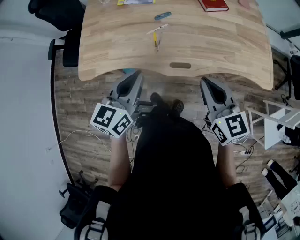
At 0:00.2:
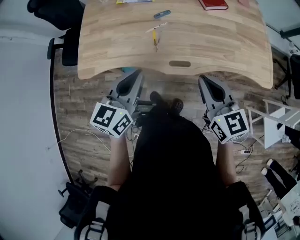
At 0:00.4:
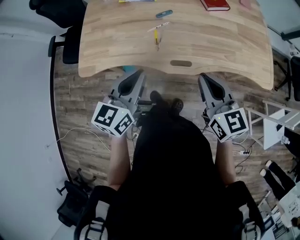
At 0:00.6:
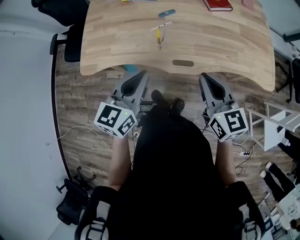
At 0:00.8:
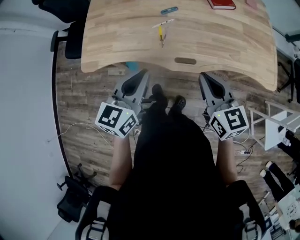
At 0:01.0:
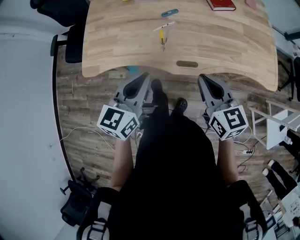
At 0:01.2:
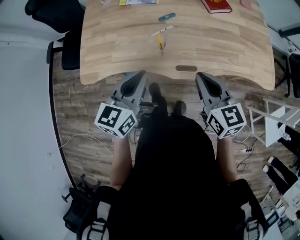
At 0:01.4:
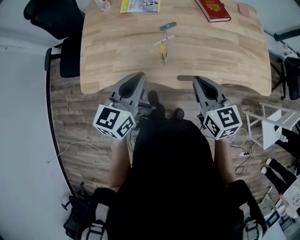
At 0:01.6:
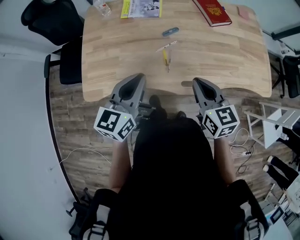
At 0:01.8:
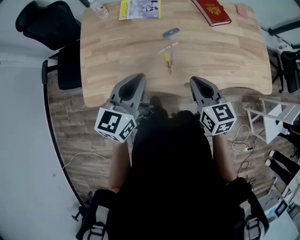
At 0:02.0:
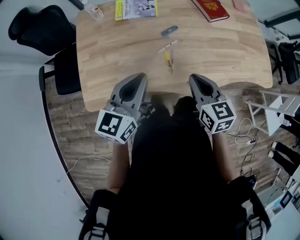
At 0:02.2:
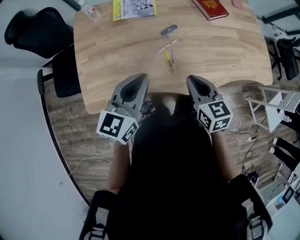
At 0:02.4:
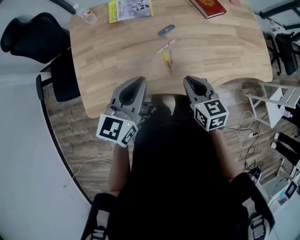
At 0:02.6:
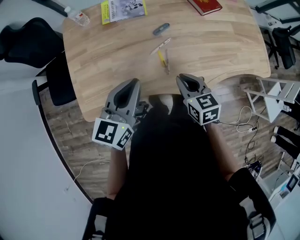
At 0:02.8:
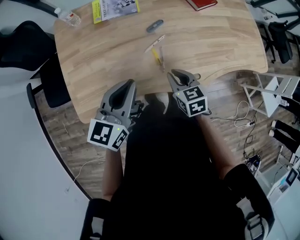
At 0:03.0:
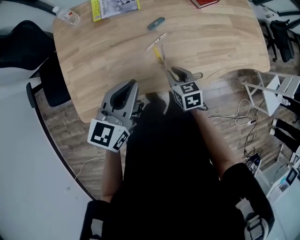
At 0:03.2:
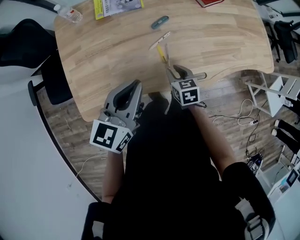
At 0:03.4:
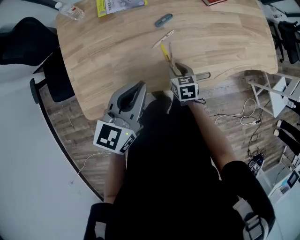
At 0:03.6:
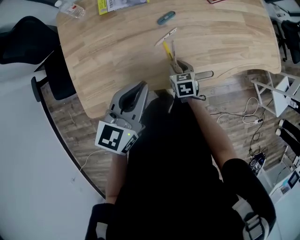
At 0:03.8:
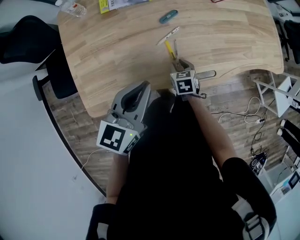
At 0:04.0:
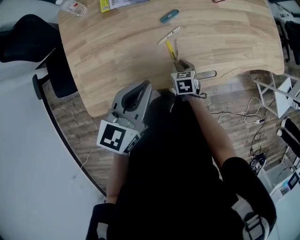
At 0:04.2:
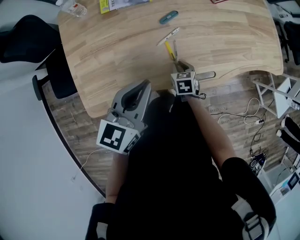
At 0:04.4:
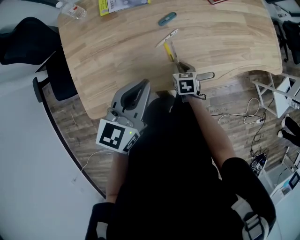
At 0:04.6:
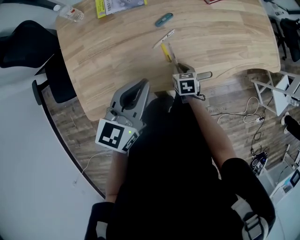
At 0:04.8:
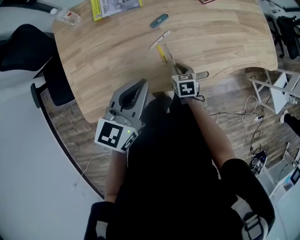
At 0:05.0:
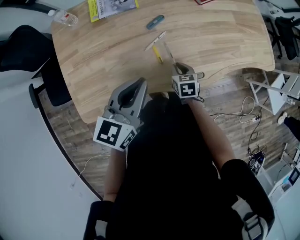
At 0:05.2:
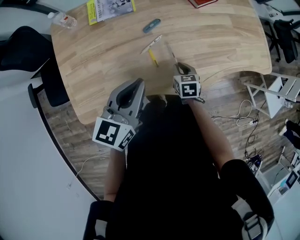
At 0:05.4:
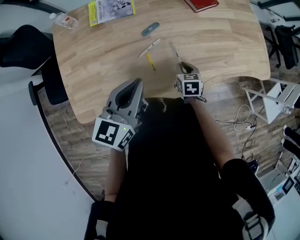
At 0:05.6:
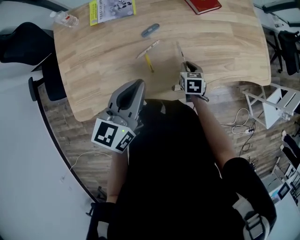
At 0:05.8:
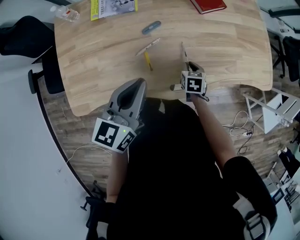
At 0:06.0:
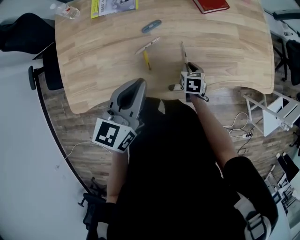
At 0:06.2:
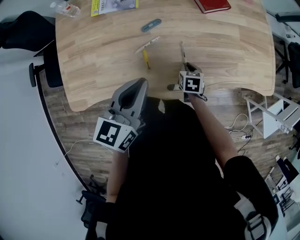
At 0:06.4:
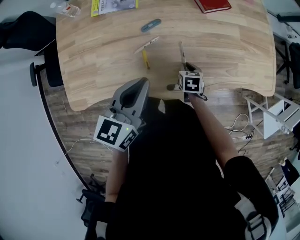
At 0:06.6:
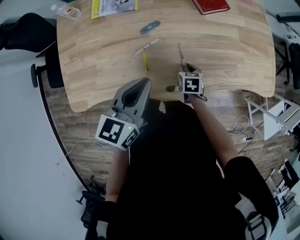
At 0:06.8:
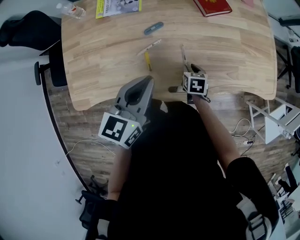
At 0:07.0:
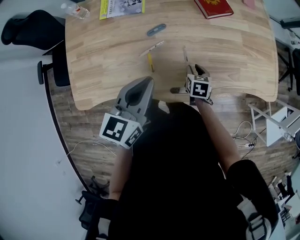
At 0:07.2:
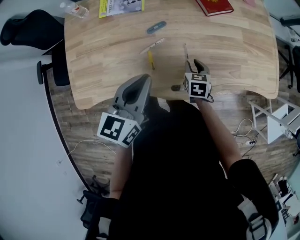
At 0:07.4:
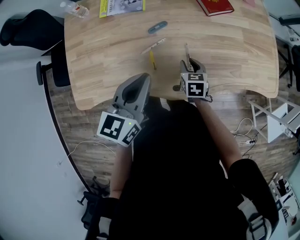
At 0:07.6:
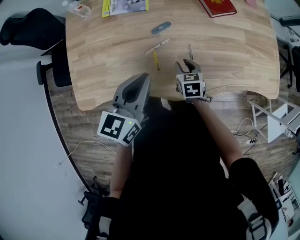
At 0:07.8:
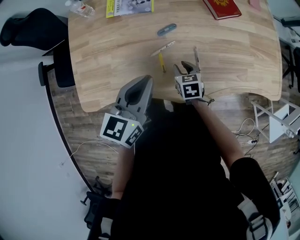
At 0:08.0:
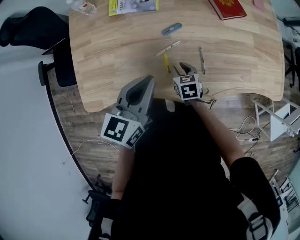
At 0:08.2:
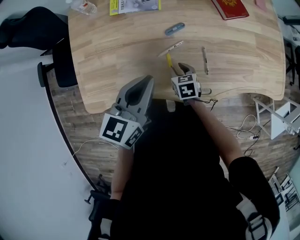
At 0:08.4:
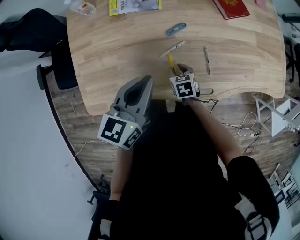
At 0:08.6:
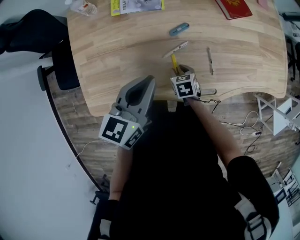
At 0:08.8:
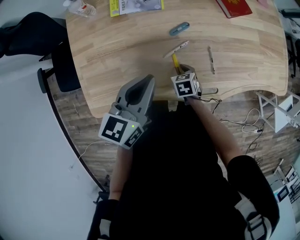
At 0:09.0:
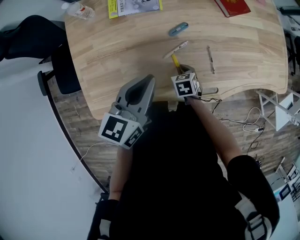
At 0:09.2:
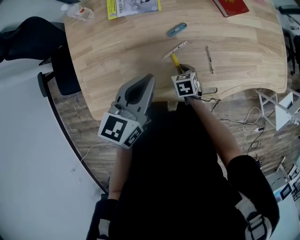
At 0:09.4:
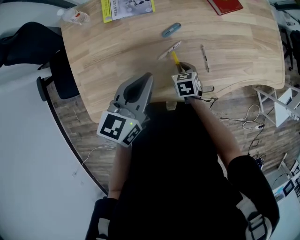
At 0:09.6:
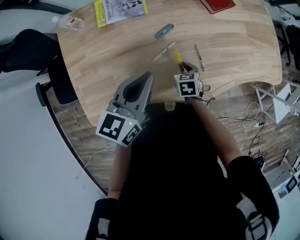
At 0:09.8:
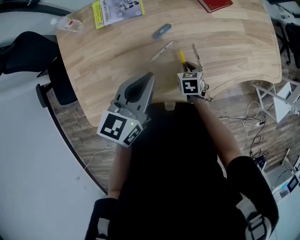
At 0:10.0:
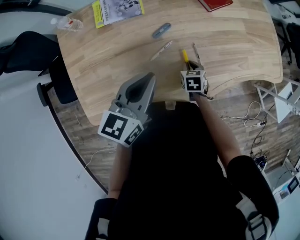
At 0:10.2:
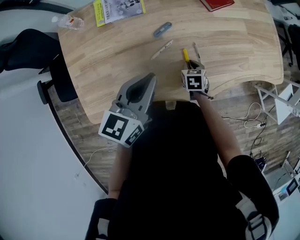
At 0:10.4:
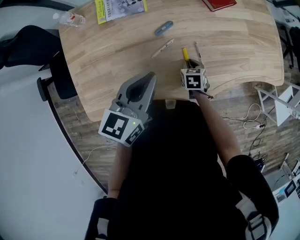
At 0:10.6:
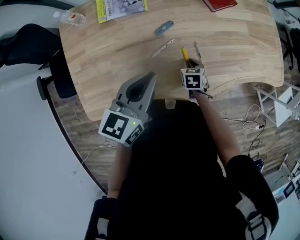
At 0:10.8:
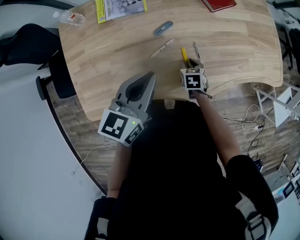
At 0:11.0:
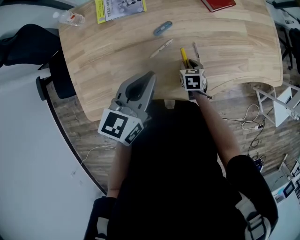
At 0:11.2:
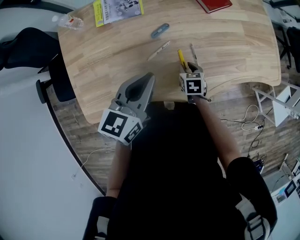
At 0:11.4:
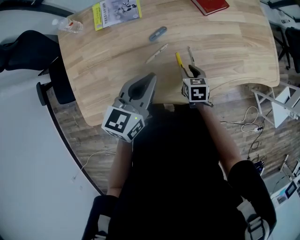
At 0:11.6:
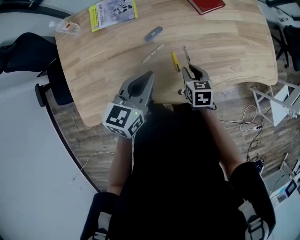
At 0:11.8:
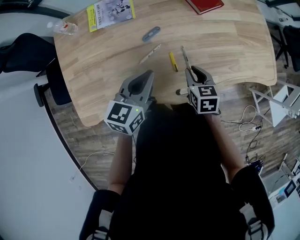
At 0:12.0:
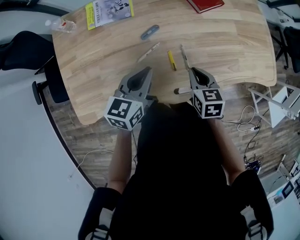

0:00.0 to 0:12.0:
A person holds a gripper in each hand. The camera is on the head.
0:00.0 to 0:01.6: The right gripper heads to the left and forward, covering roughly 15 cm, while the left gripper shifts some 15 cm forward and to the left.
0:01.6 to 0:03.0: The left gripper moves forward and downward, some 10 cm. Meanwhile the right gripper shifts some 20 cm downward and to the left, and swivels approximately 20 degrees.
0:03.0 to 0:04.4: The right gripper goes roughly 10 cm downward.
0:04.4 to 0:06.0: The two grippers go about 15 cm to the right and forward.
0:06.0 to 0:07.6: The right gripper goes about 10 cm to the left and upward.
0:07.6 to 0:09.0: The right gripper goes about 15 cm to the left and downward; the left gripper moves to the left, about 10 cm.
0:09.0 to 0:10.4: The left gripper is displaced to the right by about 5 cm. The right gripper travels to the right by roughly 10 cm.
0:10.4 to 0:12.0: The left gripper heads downward, covering approximately 5 cm, while the right gripper moves upward, some 15 cm.

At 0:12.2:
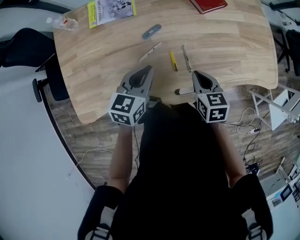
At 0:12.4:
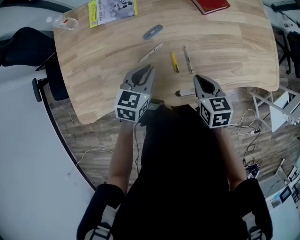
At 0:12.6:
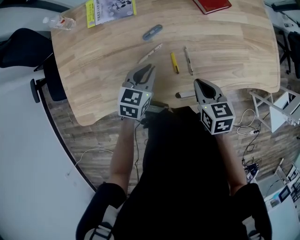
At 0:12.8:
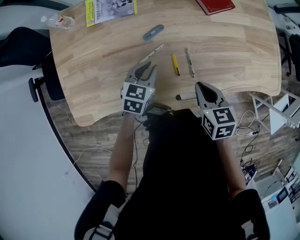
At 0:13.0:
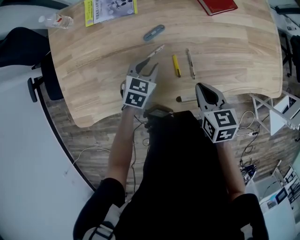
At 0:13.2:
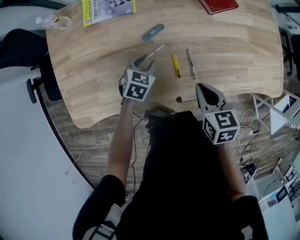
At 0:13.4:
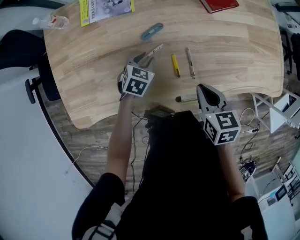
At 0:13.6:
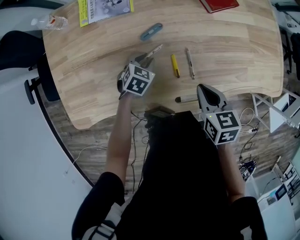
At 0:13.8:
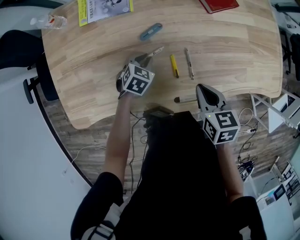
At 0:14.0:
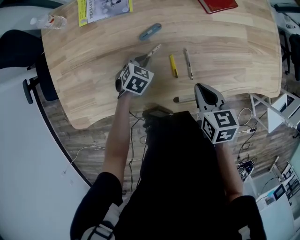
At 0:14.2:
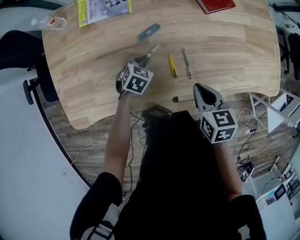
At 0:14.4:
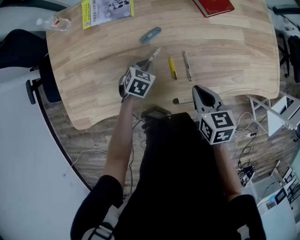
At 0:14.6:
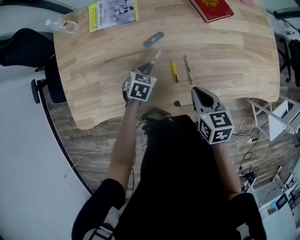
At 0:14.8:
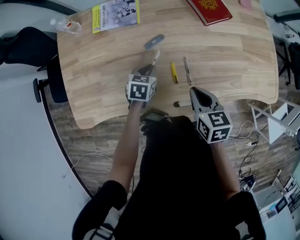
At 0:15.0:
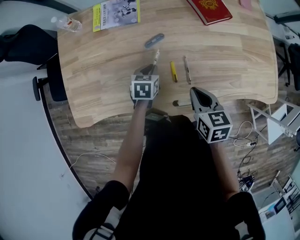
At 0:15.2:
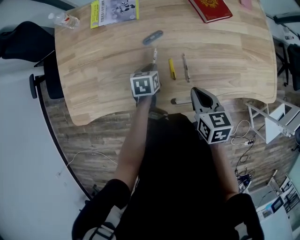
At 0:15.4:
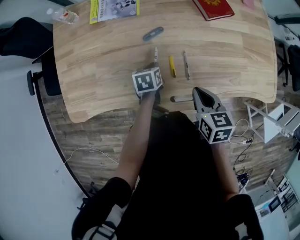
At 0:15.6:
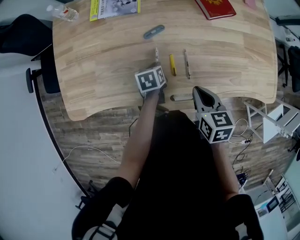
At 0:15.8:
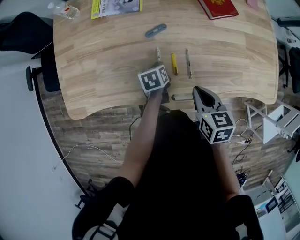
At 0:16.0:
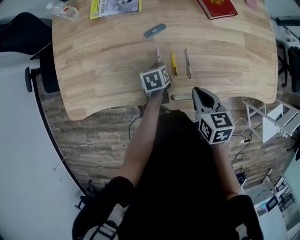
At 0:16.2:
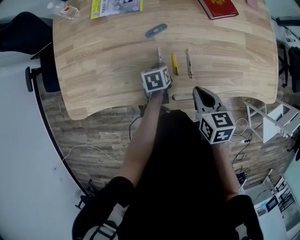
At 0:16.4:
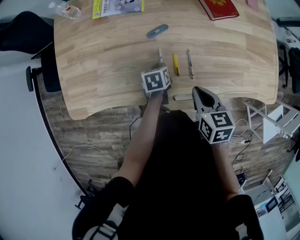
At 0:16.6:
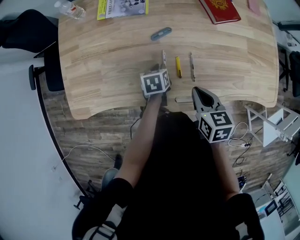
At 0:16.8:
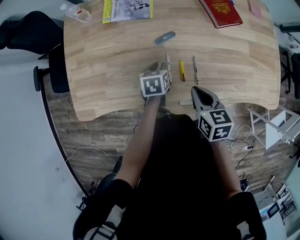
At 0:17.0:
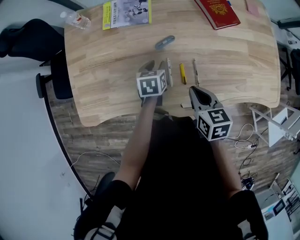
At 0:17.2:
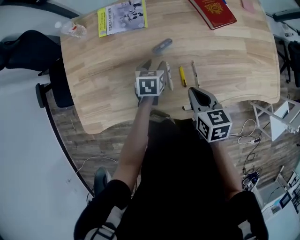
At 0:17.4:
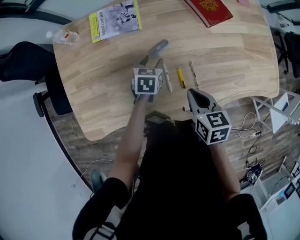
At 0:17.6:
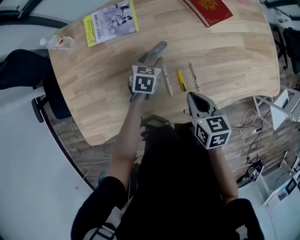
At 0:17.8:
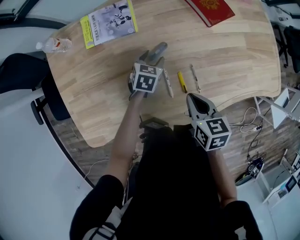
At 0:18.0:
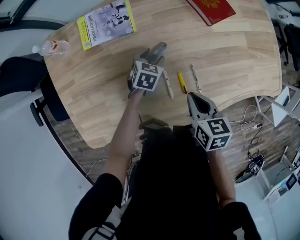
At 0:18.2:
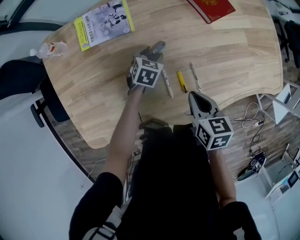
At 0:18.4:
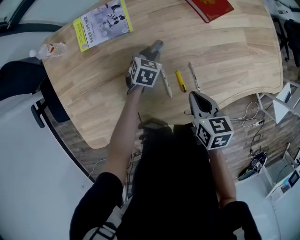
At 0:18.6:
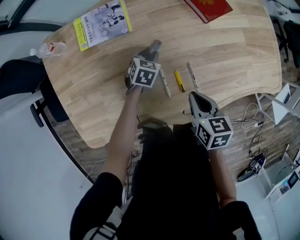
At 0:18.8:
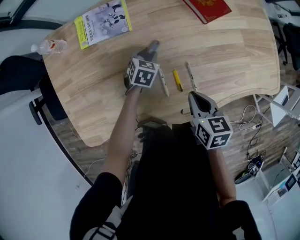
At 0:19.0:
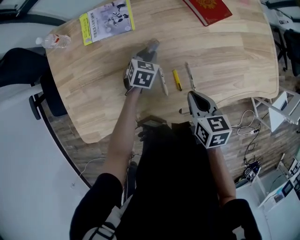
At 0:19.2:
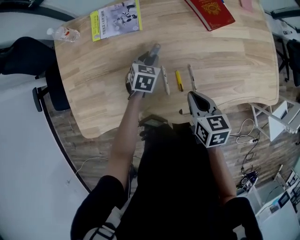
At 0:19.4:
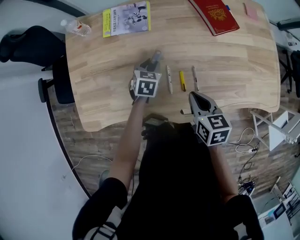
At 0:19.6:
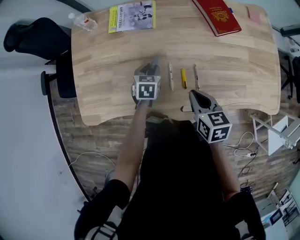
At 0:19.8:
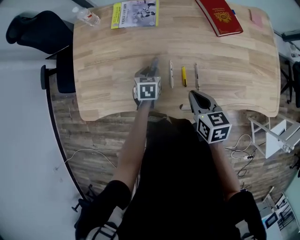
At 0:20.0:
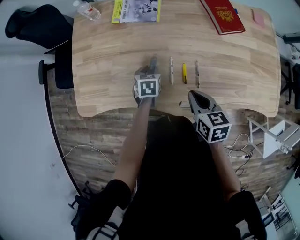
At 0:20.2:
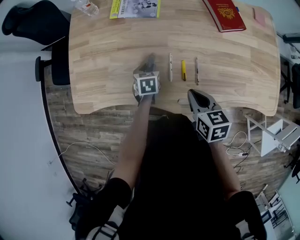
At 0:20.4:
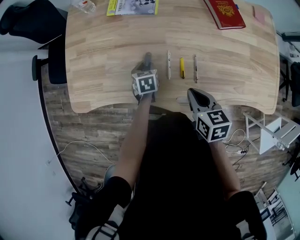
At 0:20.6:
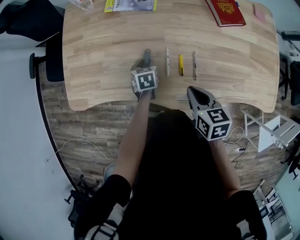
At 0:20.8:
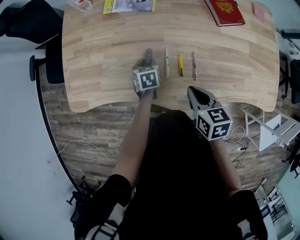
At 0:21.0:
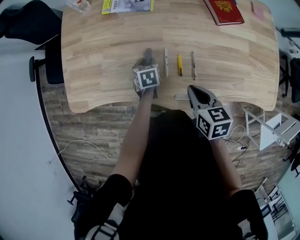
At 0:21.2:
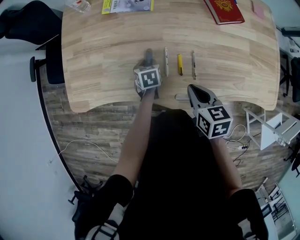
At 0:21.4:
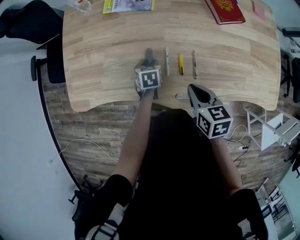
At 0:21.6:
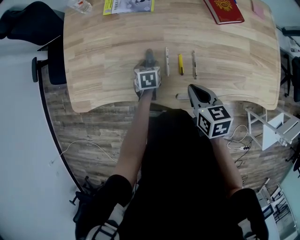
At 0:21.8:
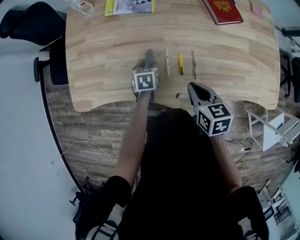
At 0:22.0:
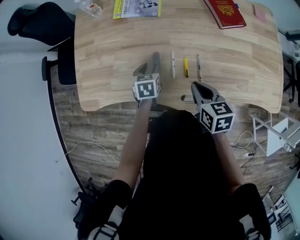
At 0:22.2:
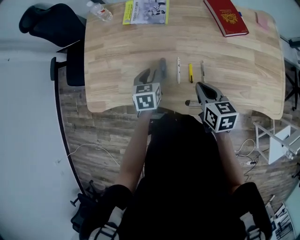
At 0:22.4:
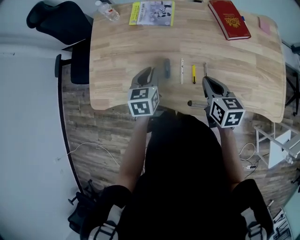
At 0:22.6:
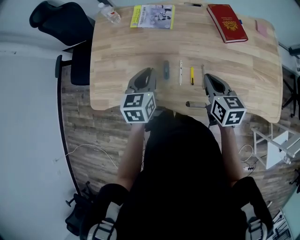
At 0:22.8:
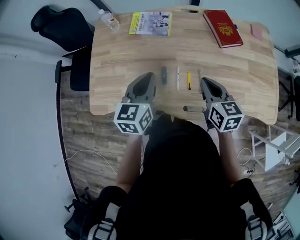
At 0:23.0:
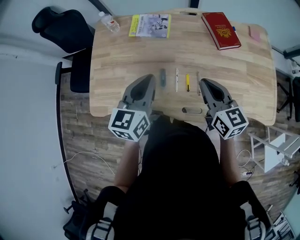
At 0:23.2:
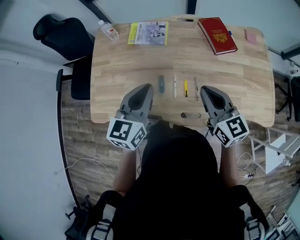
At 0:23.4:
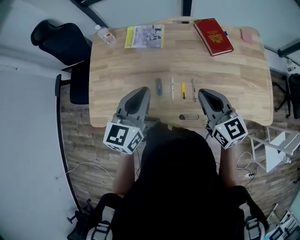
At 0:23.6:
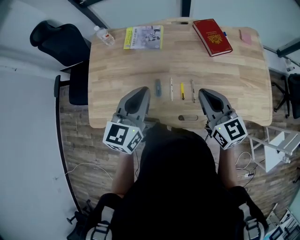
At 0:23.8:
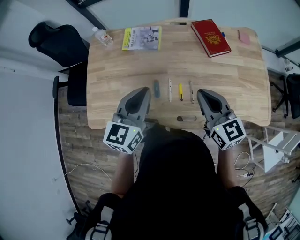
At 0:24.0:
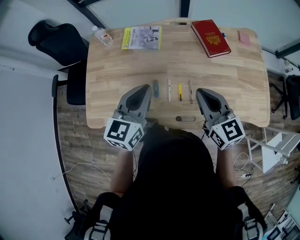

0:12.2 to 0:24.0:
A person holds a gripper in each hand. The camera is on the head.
0:12.2 to 0:13.6: The left gripper shifts roughly 20 cm downward, rotates roughly 30 degrees, and opens its fingers.
0:13.6 to 0:15.2: The left gripper changes its angle by some 40 degrees.
0:15.2 to 0:16.6: The grippers stay close to where they were, moving slightly.
0:16.6 to 0:18.2: The left gripper heads forward, covering some 15 cm, rotates around the line of its fingers by approximately 50 degrees, clockwise from behind, and opens up, while the right gripper goes some 5 cm forward.
0:18.2 to 0:19.6: The right gripper changes place by approximately 5 cm; the left gripper travels backward, upward and to the left by some 15 cm, and turns by approximately 30 degrees.
0:19.6 to 0:21.0: The left gripper shifts about 5 cm downward, and turns by some 20 degrees.
0:21.0 to 0:22.6: The left gripper shifts some 25 cm upward, rotates roughly 30 degrees, and closes its fingers, while the right gripper shifts approximately 10 cm upward.
0:22.6 to 0:24.0: The right gripper is displaced upward by about 10 cm, and rotates some 20 degrees. Meanwhile the left gripper moves upward and to the right, approximately 15 cm, and turns by approximately 20 degrees.
